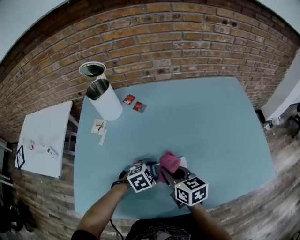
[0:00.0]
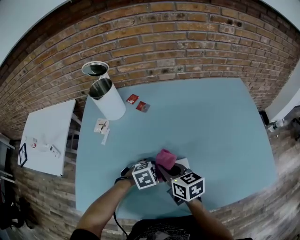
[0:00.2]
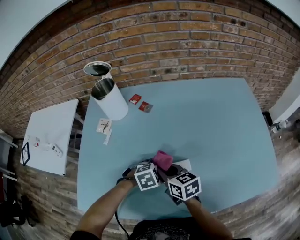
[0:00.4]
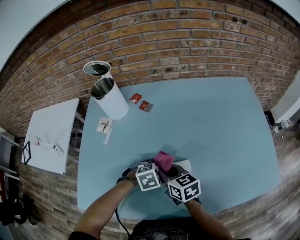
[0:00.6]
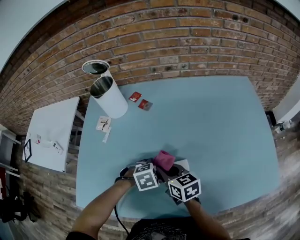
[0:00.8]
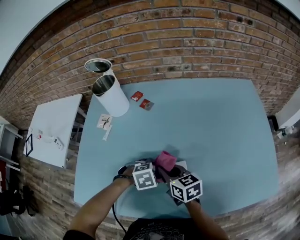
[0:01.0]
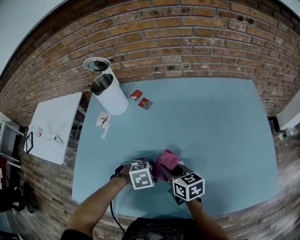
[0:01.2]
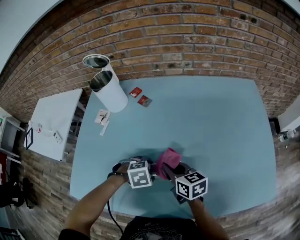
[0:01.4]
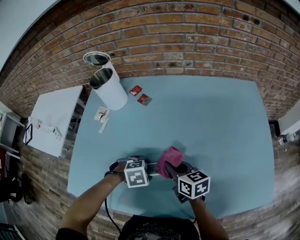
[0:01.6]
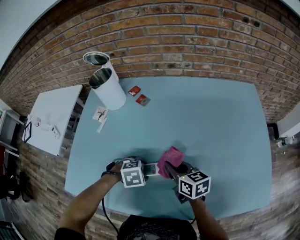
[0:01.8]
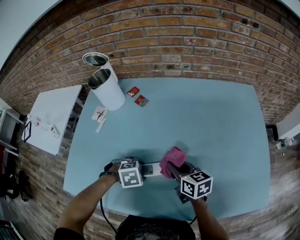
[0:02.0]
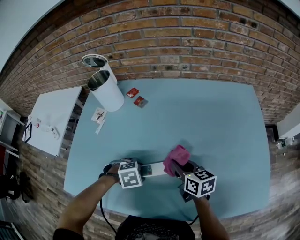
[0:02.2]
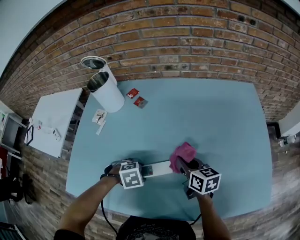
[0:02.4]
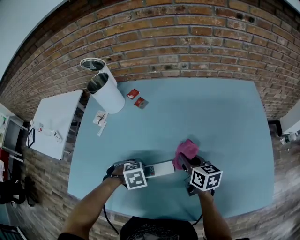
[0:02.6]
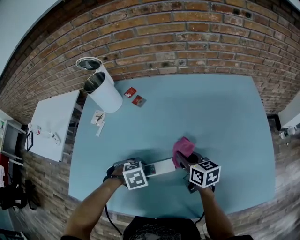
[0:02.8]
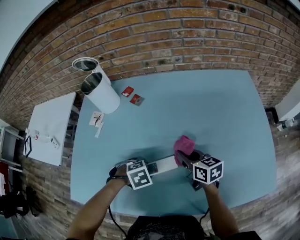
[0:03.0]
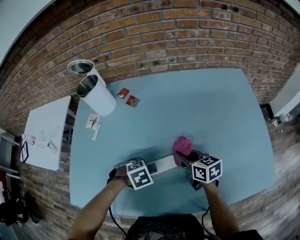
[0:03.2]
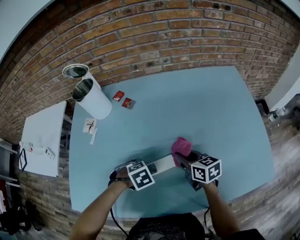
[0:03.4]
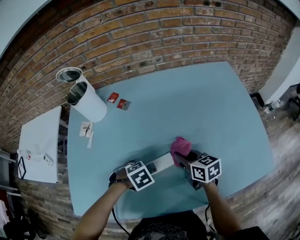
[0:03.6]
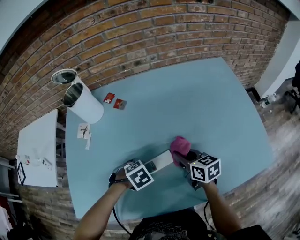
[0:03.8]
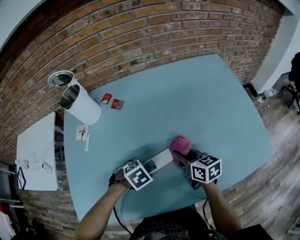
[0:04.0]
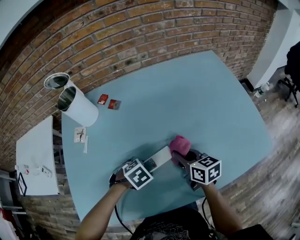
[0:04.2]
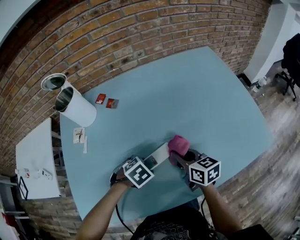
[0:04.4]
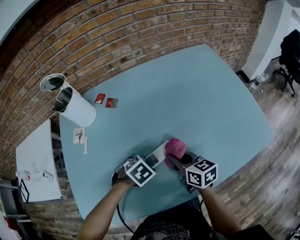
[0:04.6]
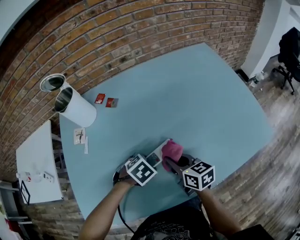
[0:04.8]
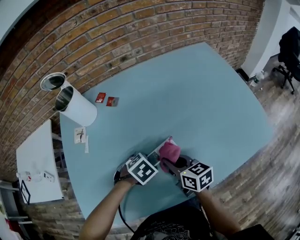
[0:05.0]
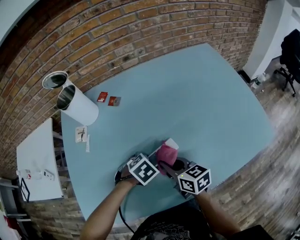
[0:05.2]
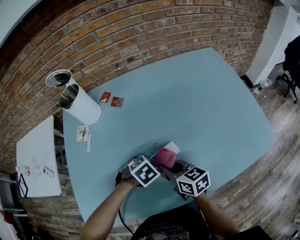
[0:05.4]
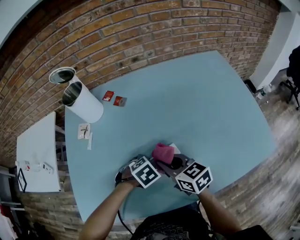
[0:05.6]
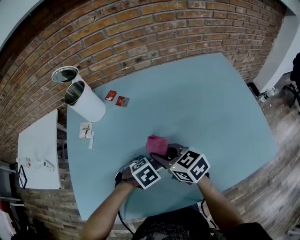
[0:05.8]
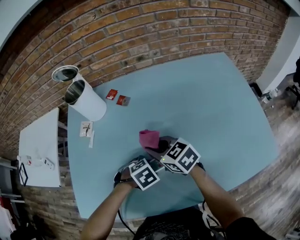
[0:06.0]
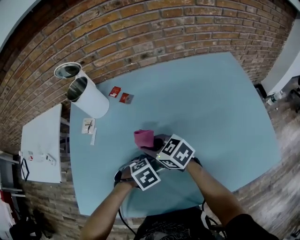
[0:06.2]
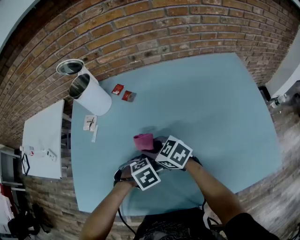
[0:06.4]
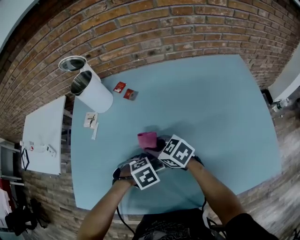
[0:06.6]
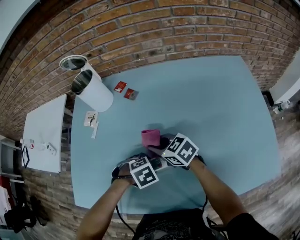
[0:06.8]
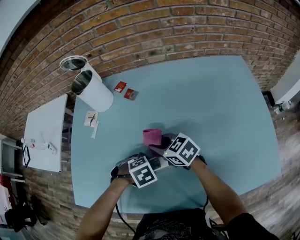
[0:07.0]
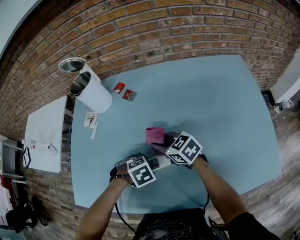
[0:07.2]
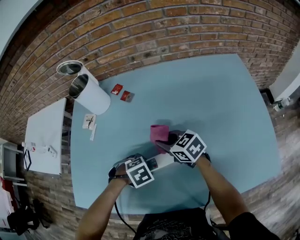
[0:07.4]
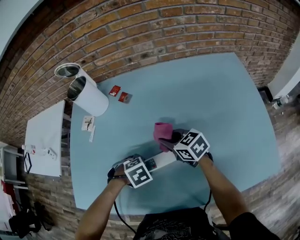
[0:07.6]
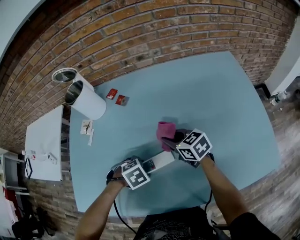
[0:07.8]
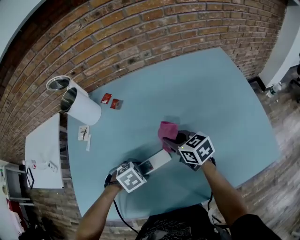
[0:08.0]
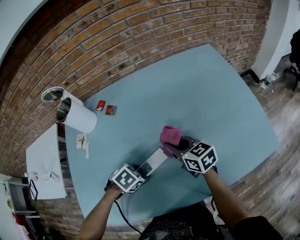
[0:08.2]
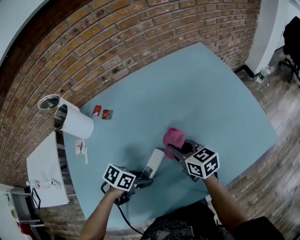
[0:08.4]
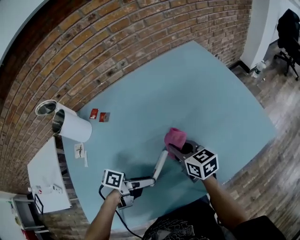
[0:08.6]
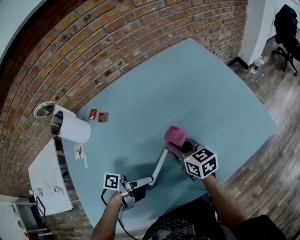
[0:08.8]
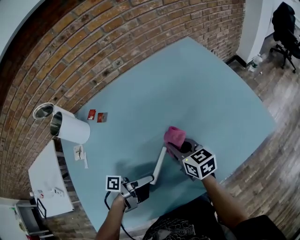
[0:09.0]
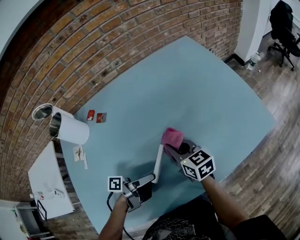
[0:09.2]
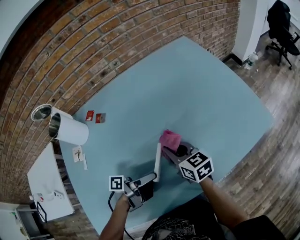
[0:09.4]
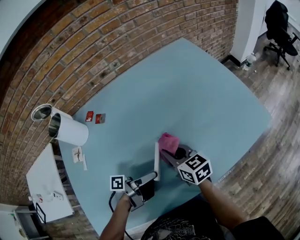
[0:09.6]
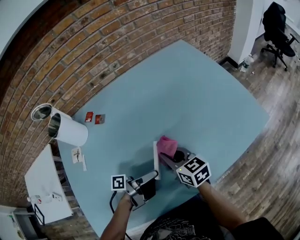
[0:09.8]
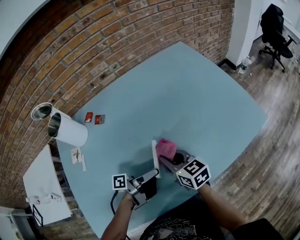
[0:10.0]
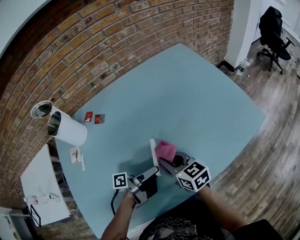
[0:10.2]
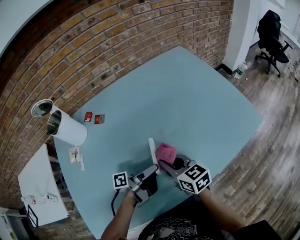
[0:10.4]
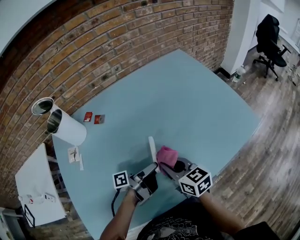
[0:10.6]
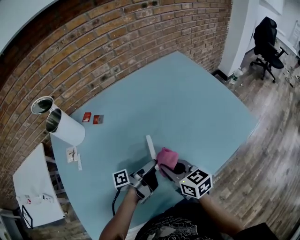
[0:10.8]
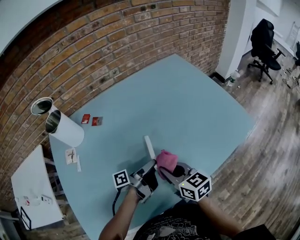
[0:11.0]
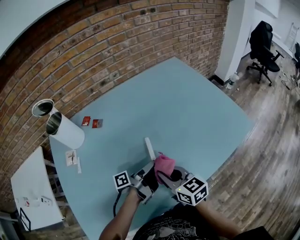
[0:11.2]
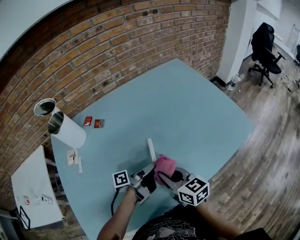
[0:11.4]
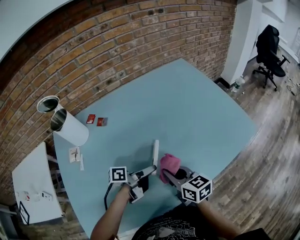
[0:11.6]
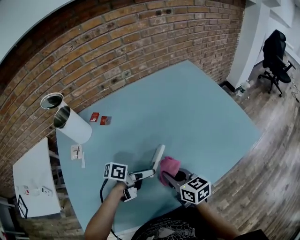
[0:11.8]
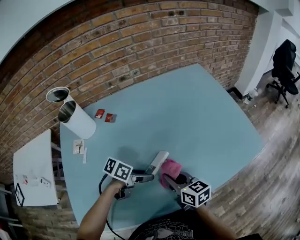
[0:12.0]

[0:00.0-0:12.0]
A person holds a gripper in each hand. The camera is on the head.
0:00.0 to 0:01.6: The right gripper shifts by approximately 5 cm.
0:01.6 to 0:03.0: The right gripper shifts by some 5 cm.
0:03.0 to 0:04.4: The right gripper shifts by some 5 cm.
0:04.4 to 0:06.0: The right gripper ends up about 15 cm from where it was, and swivels about 40 degrees.
0:06.0 to 0:07.6: The right gripper ends up roughly 10 cm from where it was.
0:07.6 to 0:09.0: The right gripper ends up some 10 cm from where it was, and turns by roughly 40 degrees, while the left gripper heads upward, covering roughly 5 cm, and angles its fingers upward, by roughly 80 degrees.
0:09.0 to 0:10.4: The right gripper heads backward, covering roughly 10 cm.
0:10.4 to 0:12.0: The left gripper angles its fingers downward, by approximately 40 degrees.

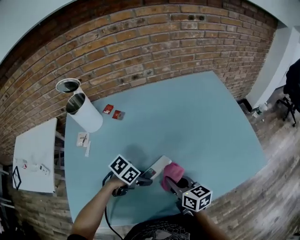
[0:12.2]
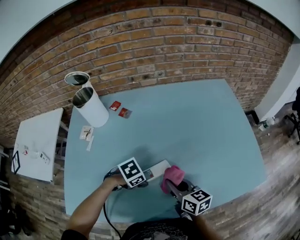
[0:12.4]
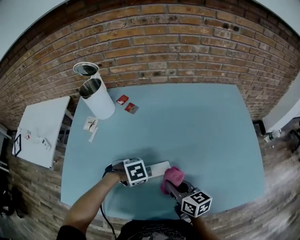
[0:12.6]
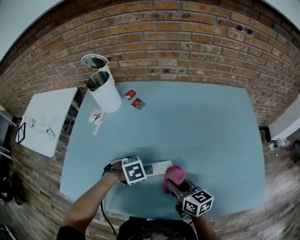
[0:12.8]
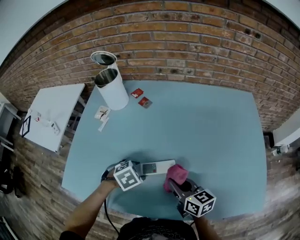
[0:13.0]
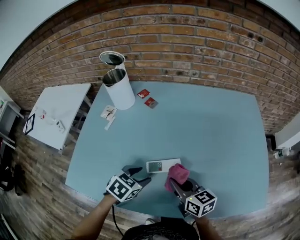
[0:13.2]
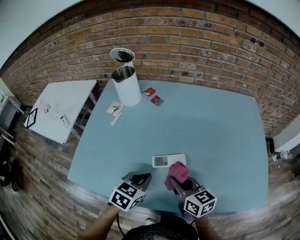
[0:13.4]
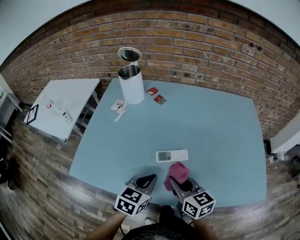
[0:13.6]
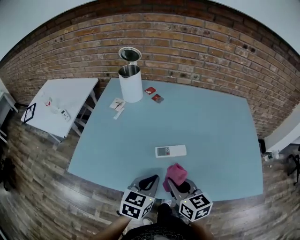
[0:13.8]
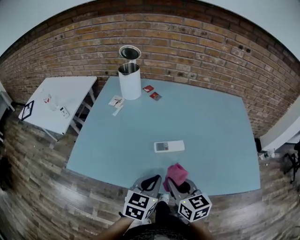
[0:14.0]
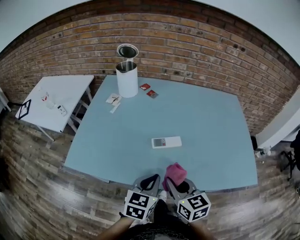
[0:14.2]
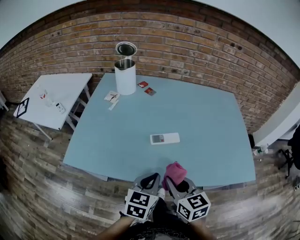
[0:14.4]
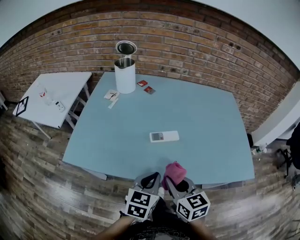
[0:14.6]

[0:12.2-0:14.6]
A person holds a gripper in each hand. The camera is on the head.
0:12.2 to 0:13.4: The right gripper rotates about 20 degrees, while the left gripper goes approximately 10 cm upward, rotates approximately 50 degrees, and closes up.
0:13.4 to 0:14.6: The two grippers go about 15 cm backward.

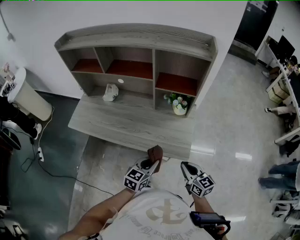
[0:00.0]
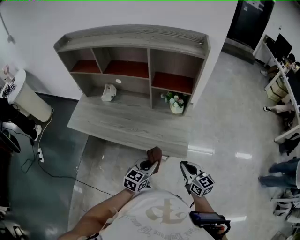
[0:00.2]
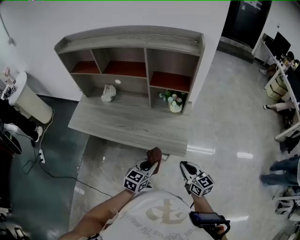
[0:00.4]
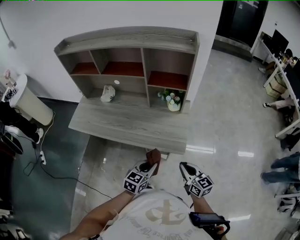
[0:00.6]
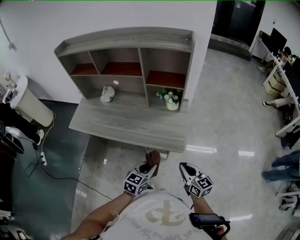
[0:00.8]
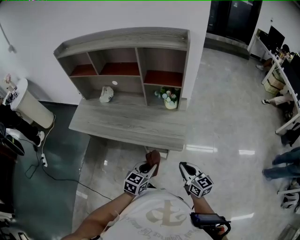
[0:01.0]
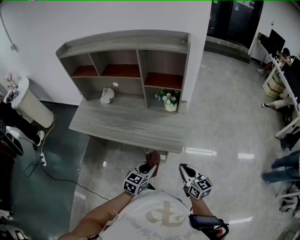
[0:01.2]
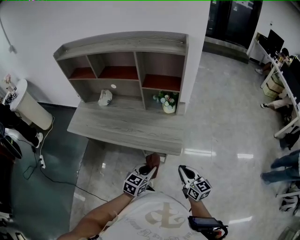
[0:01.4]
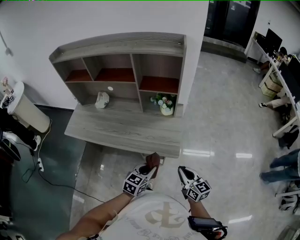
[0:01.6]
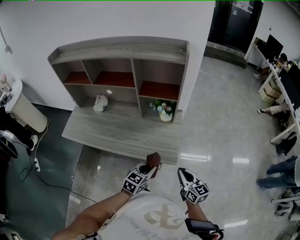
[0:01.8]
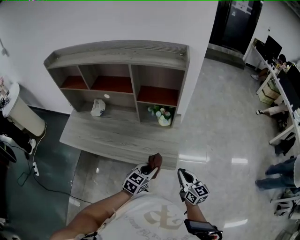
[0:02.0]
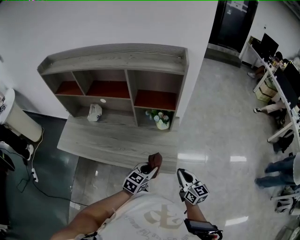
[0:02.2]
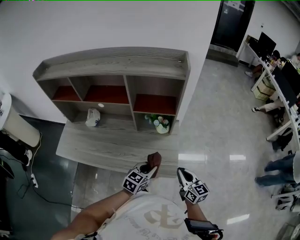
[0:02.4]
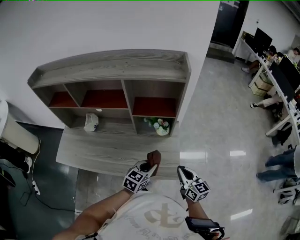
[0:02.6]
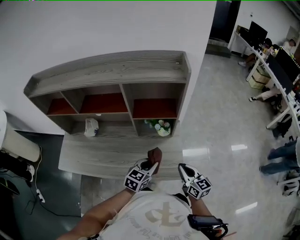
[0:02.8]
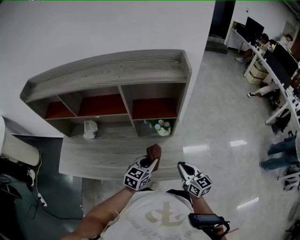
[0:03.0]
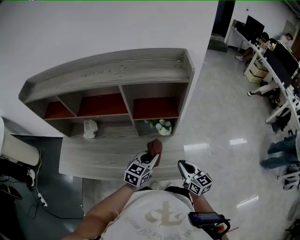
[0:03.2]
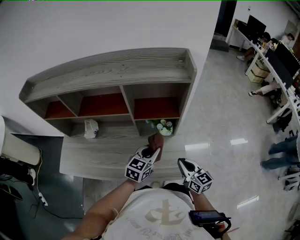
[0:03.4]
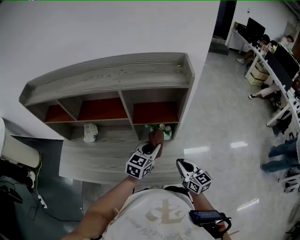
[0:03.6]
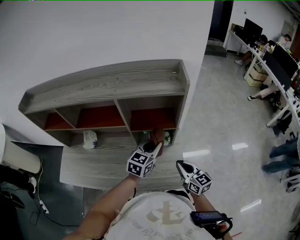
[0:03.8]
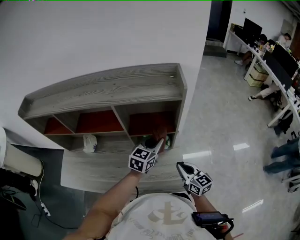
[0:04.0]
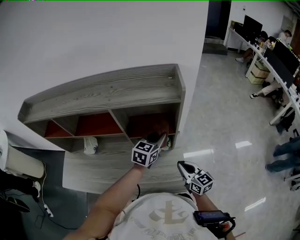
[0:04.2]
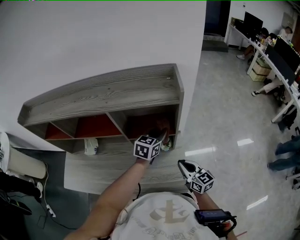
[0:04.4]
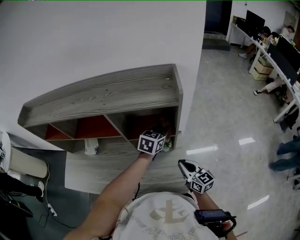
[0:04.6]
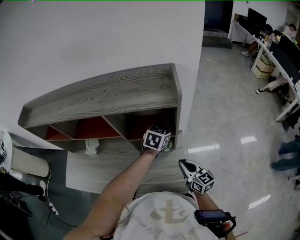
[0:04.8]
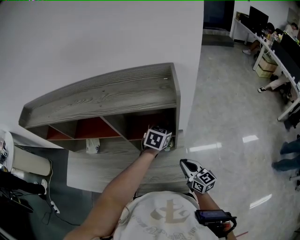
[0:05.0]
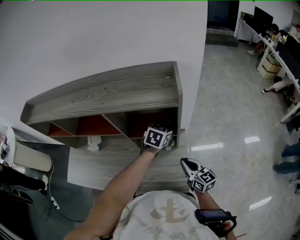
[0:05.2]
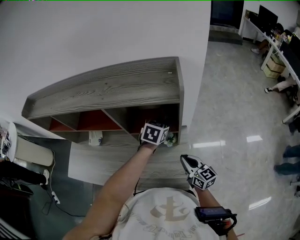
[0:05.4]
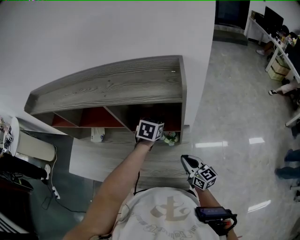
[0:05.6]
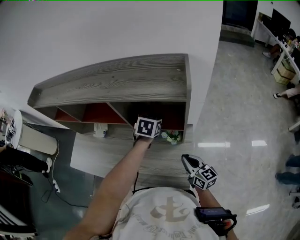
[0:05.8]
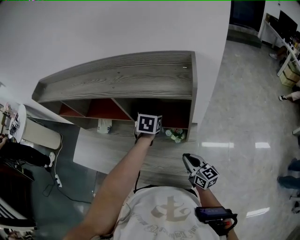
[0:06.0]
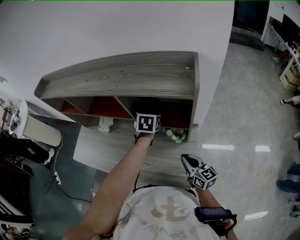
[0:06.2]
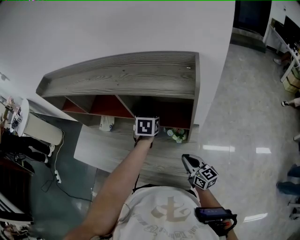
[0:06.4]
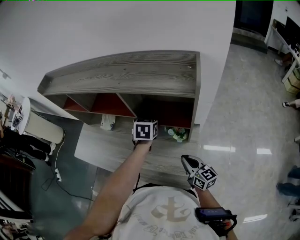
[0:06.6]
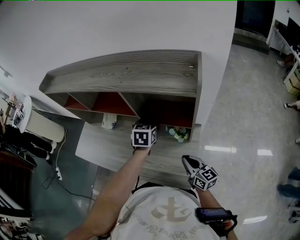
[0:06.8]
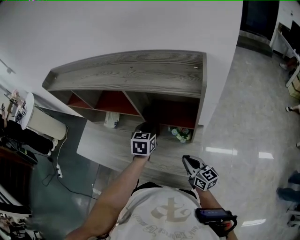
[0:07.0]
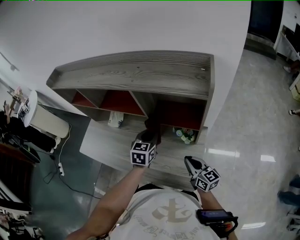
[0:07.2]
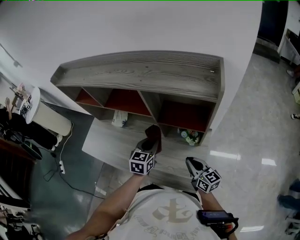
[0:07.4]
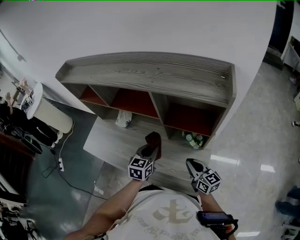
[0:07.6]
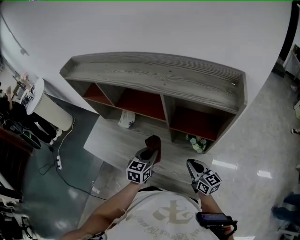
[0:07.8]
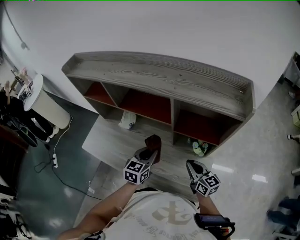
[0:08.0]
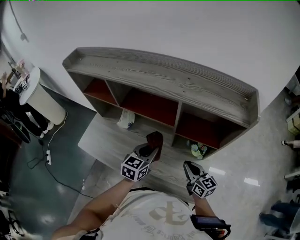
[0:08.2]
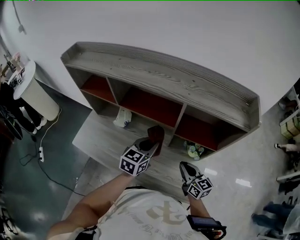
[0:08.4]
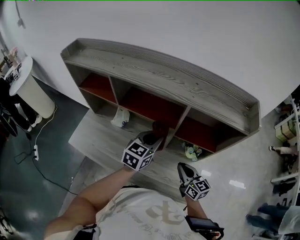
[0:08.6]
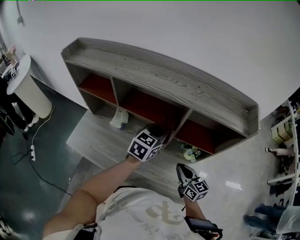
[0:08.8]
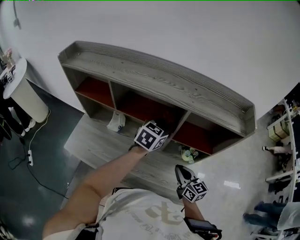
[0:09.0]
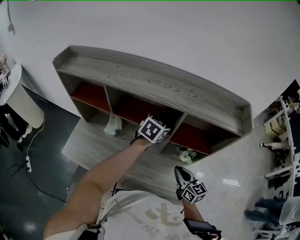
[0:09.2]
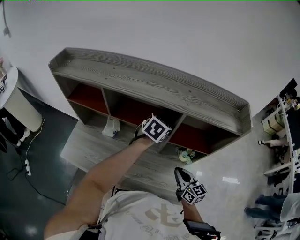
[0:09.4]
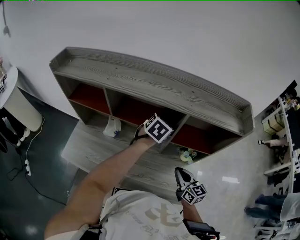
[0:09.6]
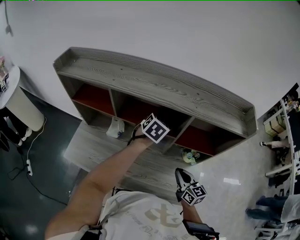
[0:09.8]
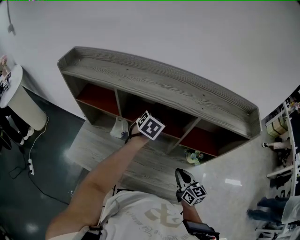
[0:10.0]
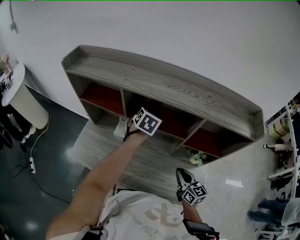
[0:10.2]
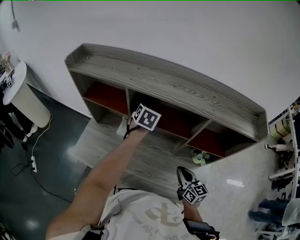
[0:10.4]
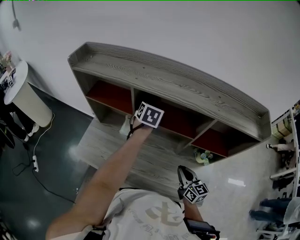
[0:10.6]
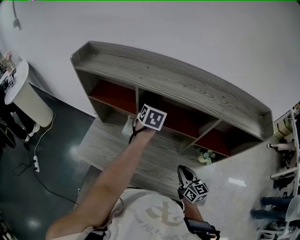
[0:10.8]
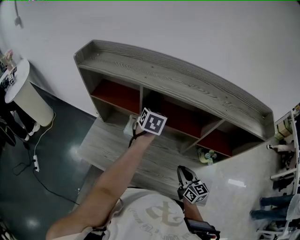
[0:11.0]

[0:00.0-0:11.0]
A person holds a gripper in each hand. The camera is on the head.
0:00.0 to 0:01.6: The grippers both shift to the right and backward by about 10 cm.
0:01.6 to 0:03.2: The left gripper heads forward, covering roughly 25 cm; the right gripper goes about 20 cm forward and to the left.
0:03.2 to 0:04.8: The right gripper moves forward, about 10 cm; the left gripper heads forward and to the right, covering approximately 25 cm.
0:04.8 to 0:06.2: The left gripper shifts some 15 cm to the left, and rotates some 30 degrees.
0:06.2 to 0:07.8: The right gripper shifts about 10 cm to the left. The left gripper heads to the left and backward, covering approximately 20 cm.
0:07.8 to 0:09.4: The right gripper travels to the left by approximately 5 cm; the left gripper goes about 20 cm forward and upward, and swivels approximately 30 degrees.
0:09.4 to 0:11.0: The left gripper is displaced to the left by roughly 20 cm, and rotates some 20 degrees; the right gripper is displaced to the left by approximately 15 cm.
